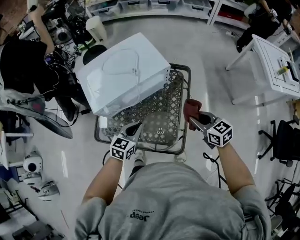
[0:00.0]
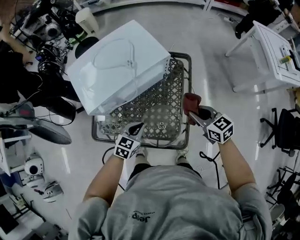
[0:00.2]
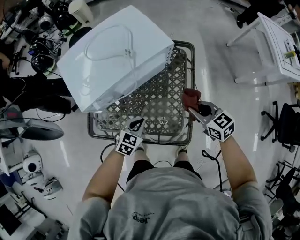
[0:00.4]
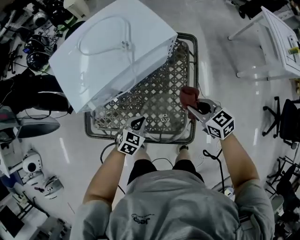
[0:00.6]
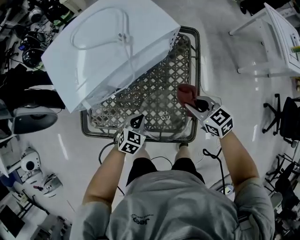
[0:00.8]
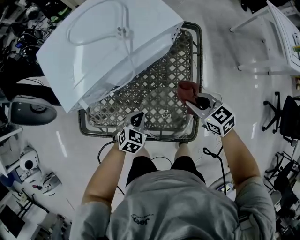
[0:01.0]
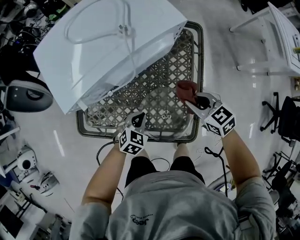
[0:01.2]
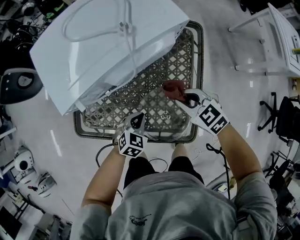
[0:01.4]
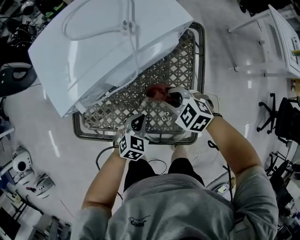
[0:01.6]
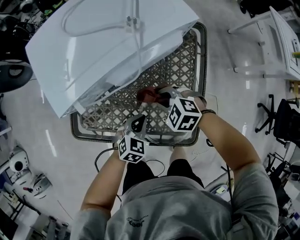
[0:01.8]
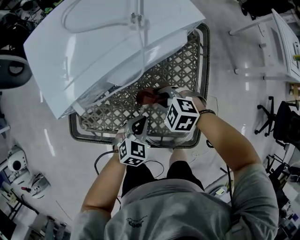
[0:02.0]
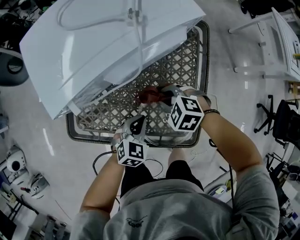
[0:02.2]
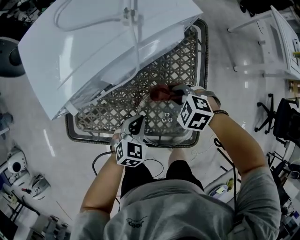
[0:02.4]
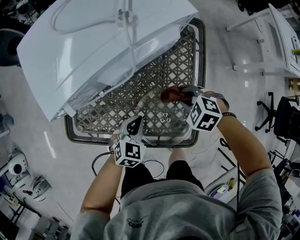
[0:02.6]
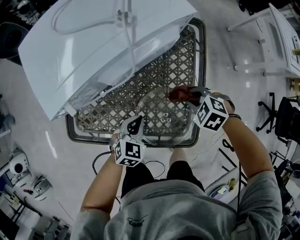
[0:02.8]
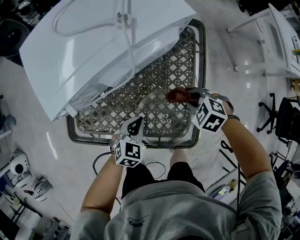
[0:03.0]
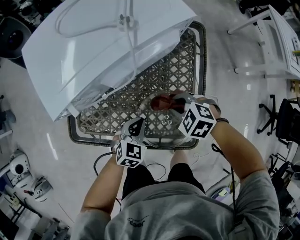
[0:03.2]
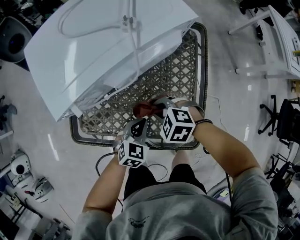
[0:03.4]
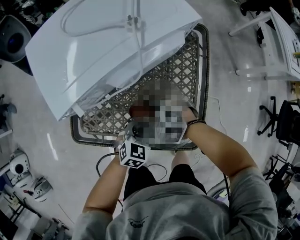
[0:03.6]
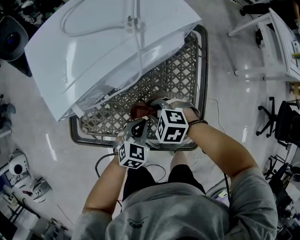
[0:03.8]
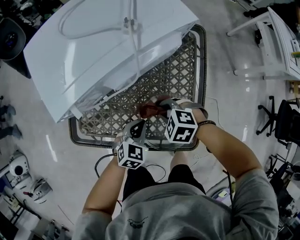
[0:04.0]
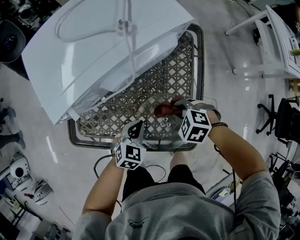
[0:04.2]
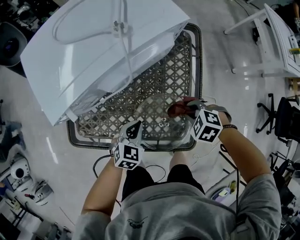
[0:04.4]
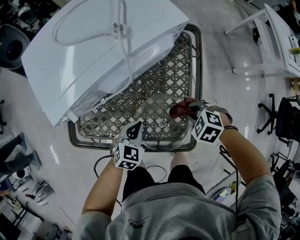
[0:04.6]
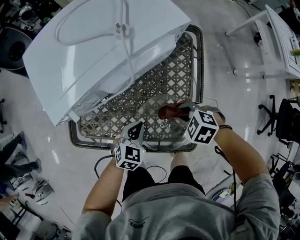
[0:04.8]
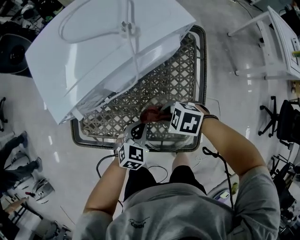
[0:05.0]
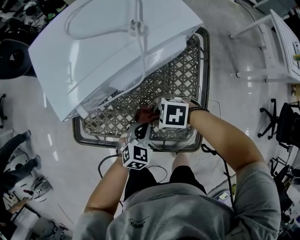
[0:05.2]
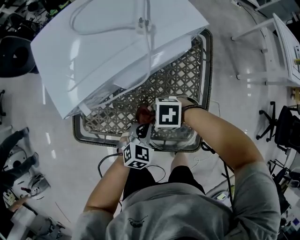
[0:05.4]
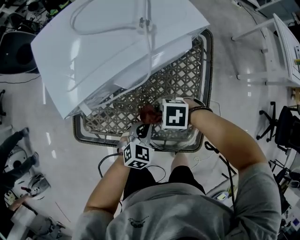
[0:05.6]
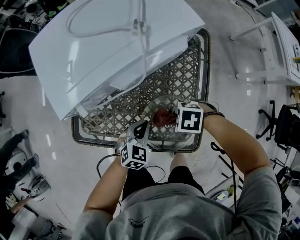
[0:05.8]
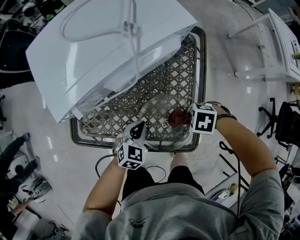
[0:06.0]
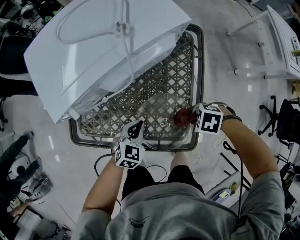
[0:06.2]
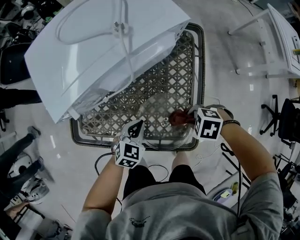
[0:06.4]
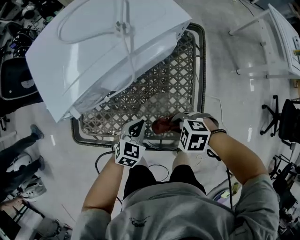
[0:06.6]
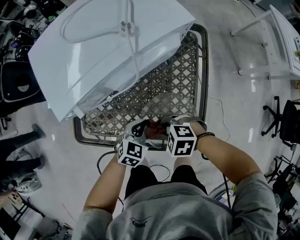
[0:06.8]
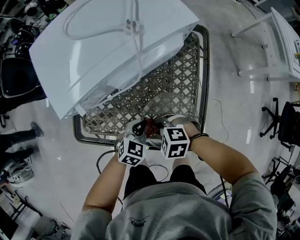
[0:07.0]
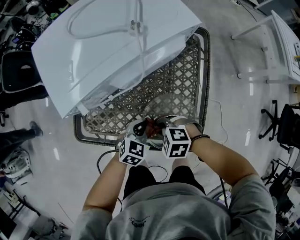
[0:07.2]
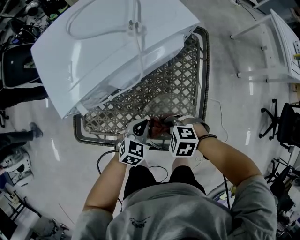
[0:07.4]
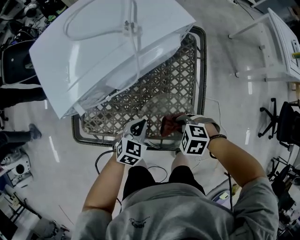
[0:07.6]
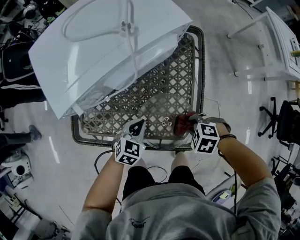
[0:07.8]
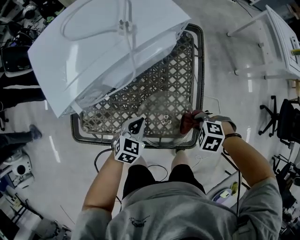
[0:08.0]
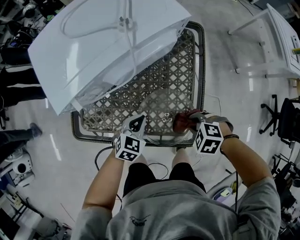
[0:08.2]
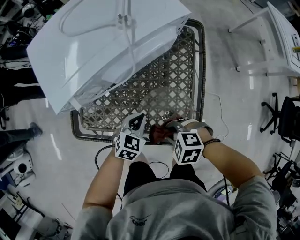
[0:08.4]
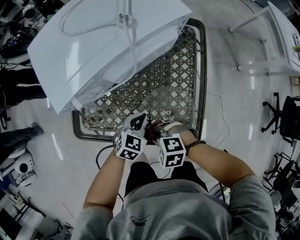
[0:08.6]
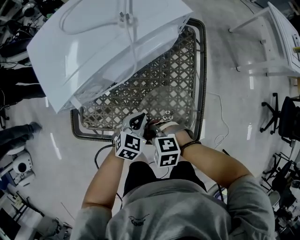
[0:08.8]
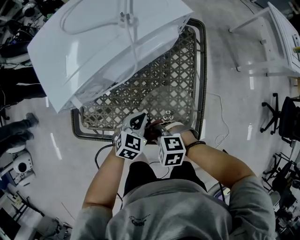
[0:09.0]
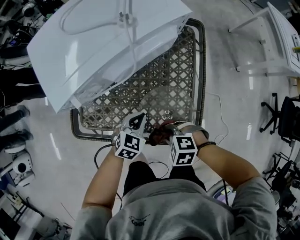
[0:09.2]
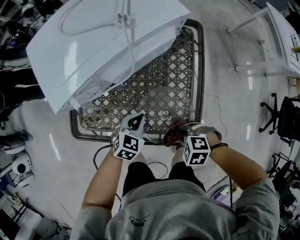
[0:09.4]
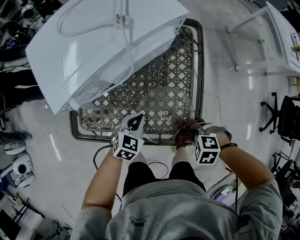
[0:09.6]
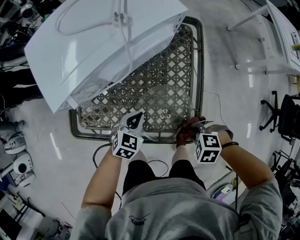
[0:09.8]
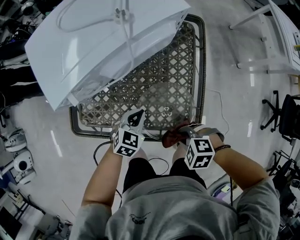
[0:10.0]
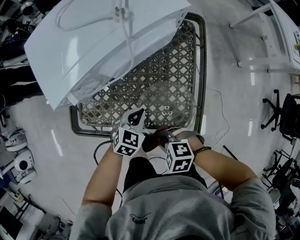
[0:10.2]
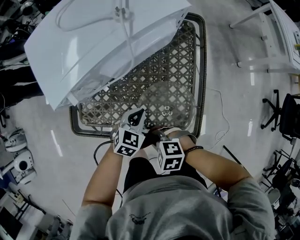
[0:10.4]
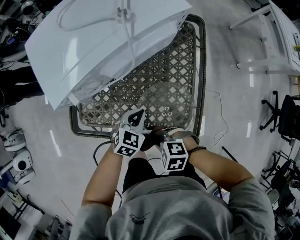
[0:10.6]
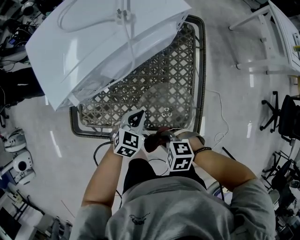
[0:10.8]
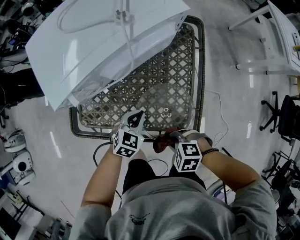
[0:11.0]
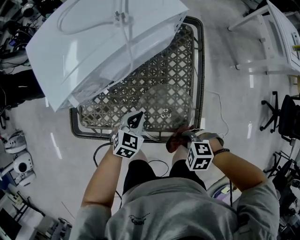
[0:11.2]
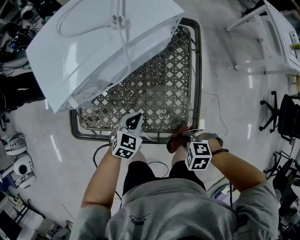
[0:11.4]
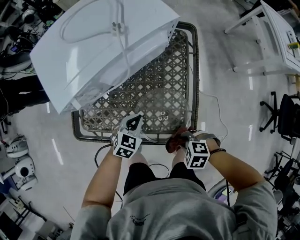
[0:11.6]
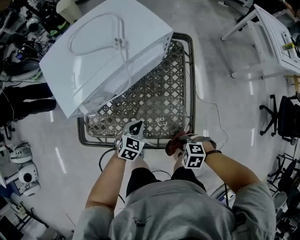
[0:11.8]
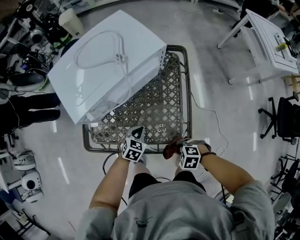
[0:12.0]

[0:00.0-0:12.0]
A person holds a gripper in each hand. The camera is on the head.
0:00.0 to 0:01.6: The left gripper shifts about 20 cm downward, and turns by some 30 degrees; the right gripper heads downward and to the left, covering approximately 25 cm, and swivels approximately 40 degrees.
0:01.6 to 0:03.0: The right gripper ends up approximately 10 cm from where it was.
0:04.4 to 0:06.0: The right gripper changes its angle by approximately 20 degrees.
0:07.6 to 0:09.0: The right gripper shifts by about 10 cm.
0:10.4 to 0:12.0: The right gripper moves some 15 cm.

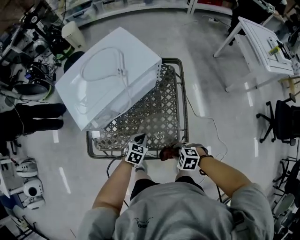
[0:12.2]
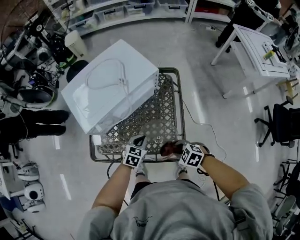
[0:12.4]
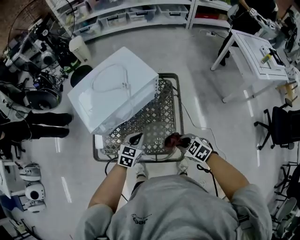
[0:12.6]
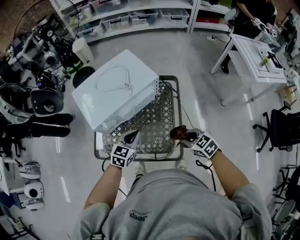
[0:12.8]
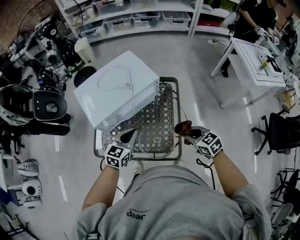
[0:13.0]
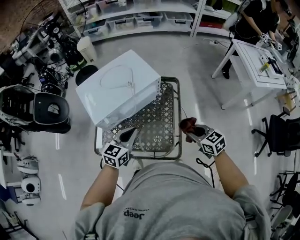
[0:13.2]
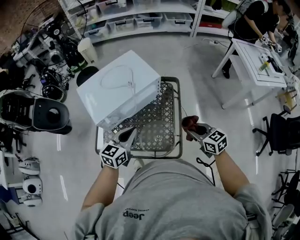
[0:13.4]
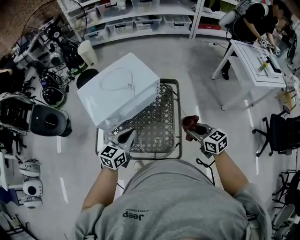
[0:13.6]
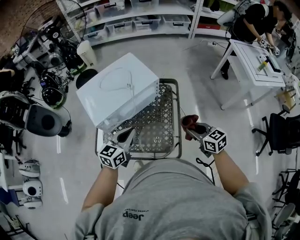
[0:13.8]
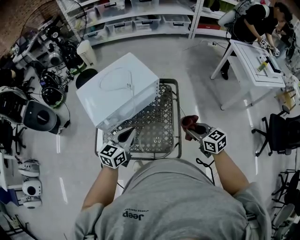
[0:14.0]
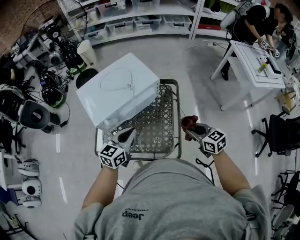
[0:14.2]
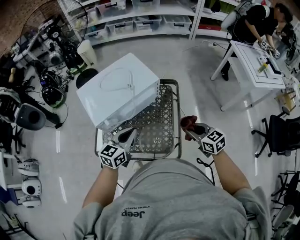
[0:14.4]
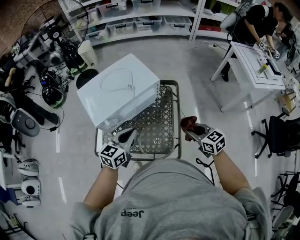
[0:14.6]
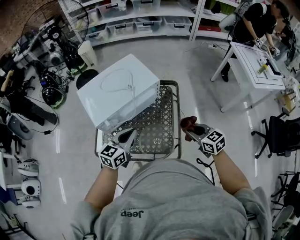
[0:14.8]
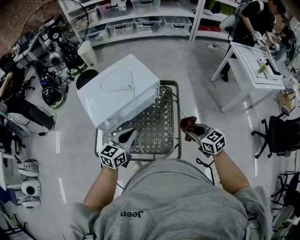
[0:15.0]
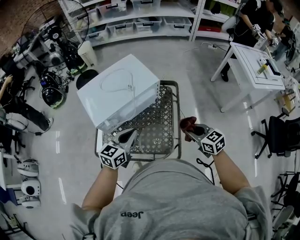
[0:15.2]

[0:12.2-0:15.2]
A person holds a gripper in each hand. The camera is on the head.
0:12.2 to 0:13.8: The grippers both shift upward by approximately 25 cm. The right gripper points its fingers roughly 40 degrees further upward; the left gripper angles its fingers upward, by roughly 30 degrees.
0:13.8 to 0:15.2: The grippers make only small movements.

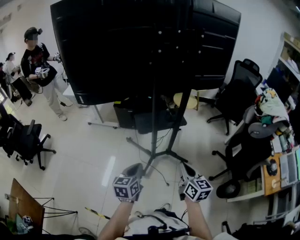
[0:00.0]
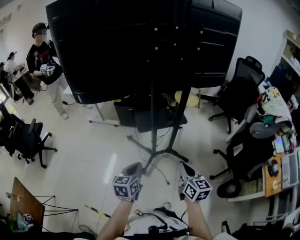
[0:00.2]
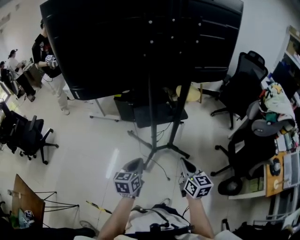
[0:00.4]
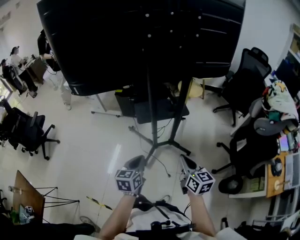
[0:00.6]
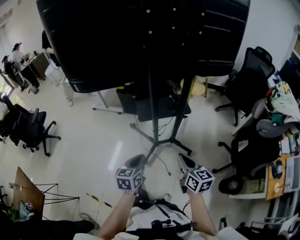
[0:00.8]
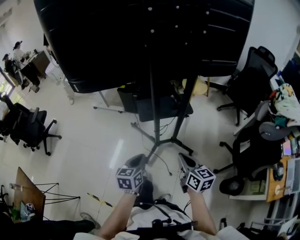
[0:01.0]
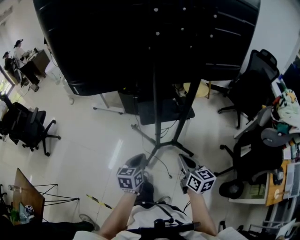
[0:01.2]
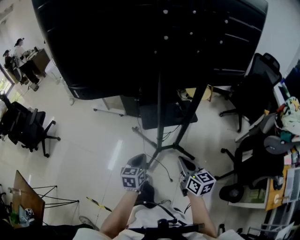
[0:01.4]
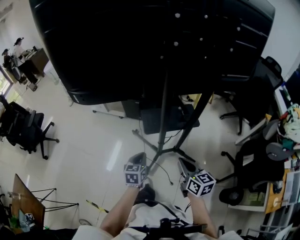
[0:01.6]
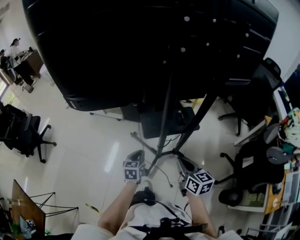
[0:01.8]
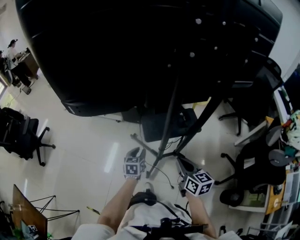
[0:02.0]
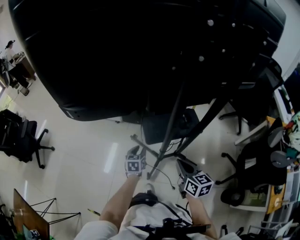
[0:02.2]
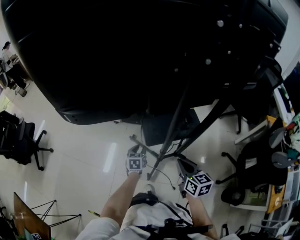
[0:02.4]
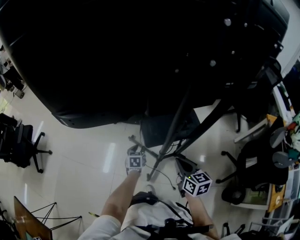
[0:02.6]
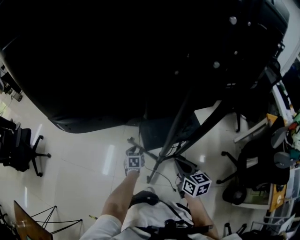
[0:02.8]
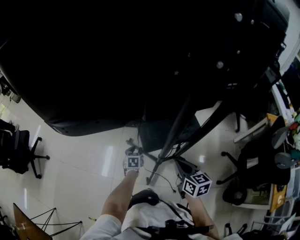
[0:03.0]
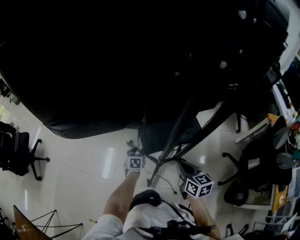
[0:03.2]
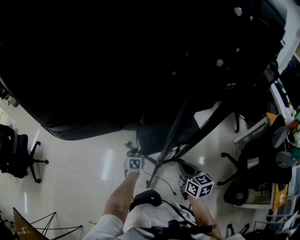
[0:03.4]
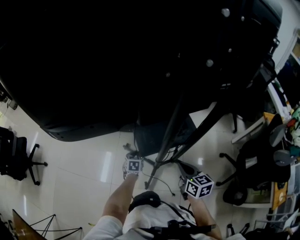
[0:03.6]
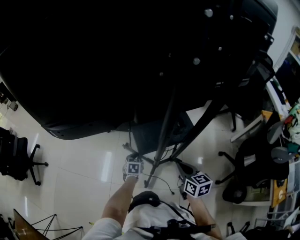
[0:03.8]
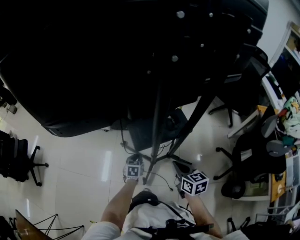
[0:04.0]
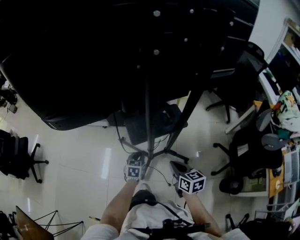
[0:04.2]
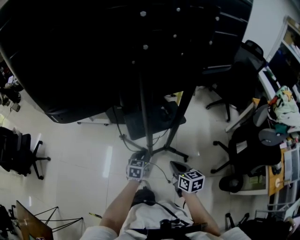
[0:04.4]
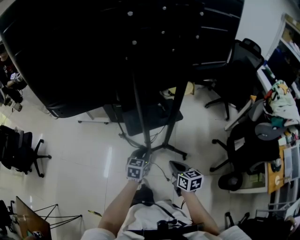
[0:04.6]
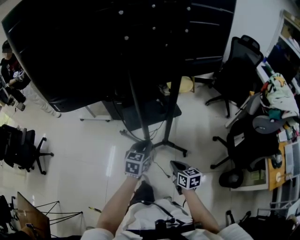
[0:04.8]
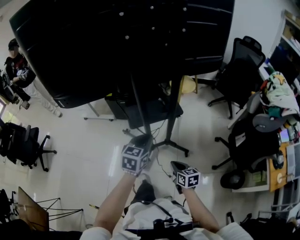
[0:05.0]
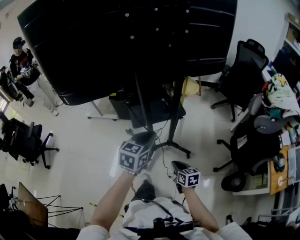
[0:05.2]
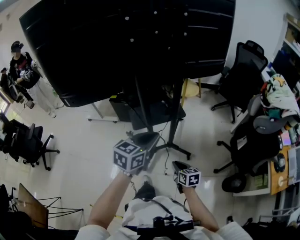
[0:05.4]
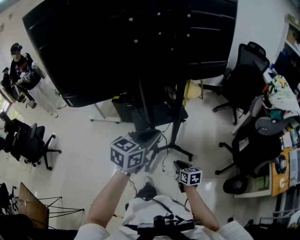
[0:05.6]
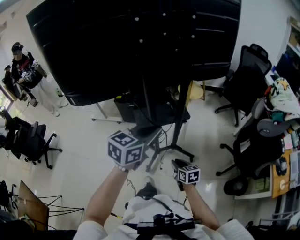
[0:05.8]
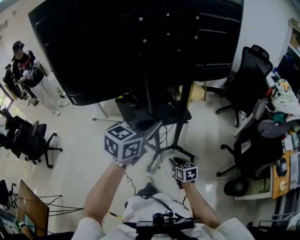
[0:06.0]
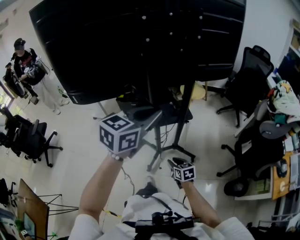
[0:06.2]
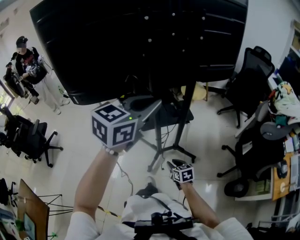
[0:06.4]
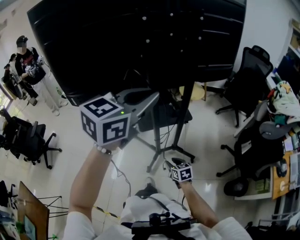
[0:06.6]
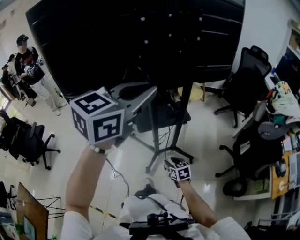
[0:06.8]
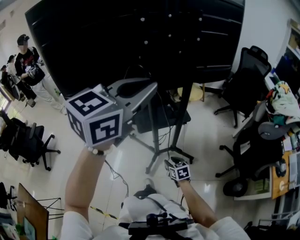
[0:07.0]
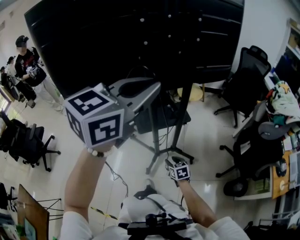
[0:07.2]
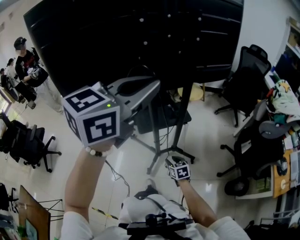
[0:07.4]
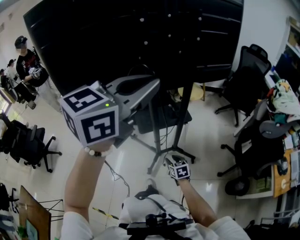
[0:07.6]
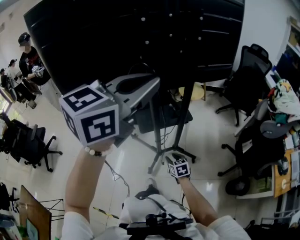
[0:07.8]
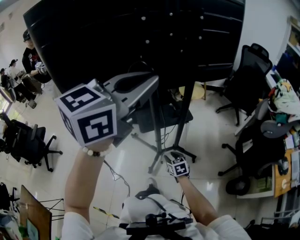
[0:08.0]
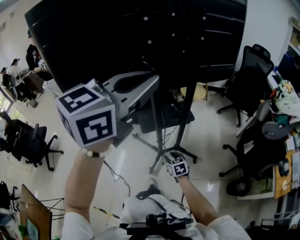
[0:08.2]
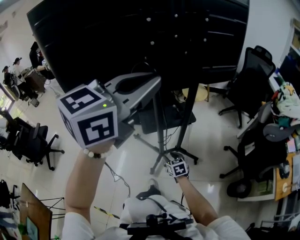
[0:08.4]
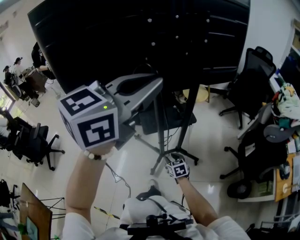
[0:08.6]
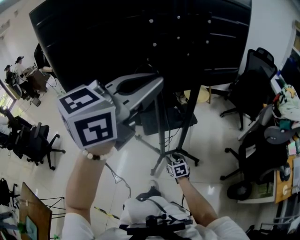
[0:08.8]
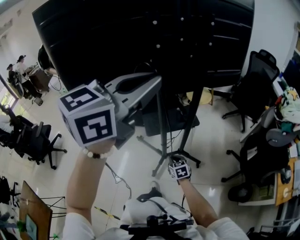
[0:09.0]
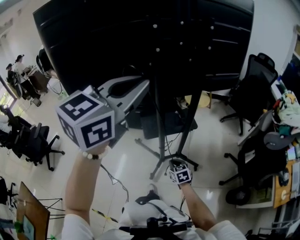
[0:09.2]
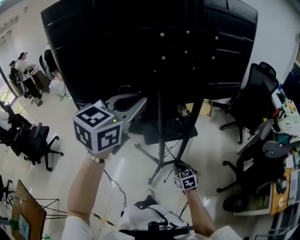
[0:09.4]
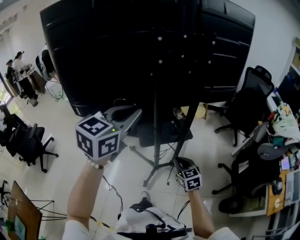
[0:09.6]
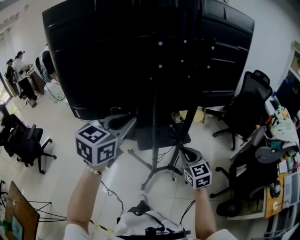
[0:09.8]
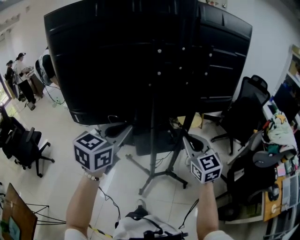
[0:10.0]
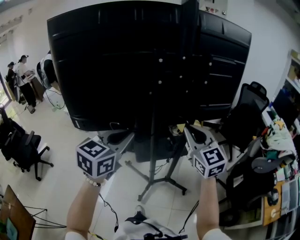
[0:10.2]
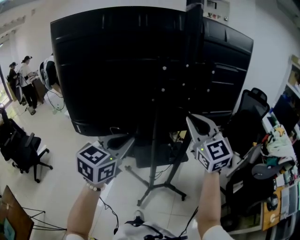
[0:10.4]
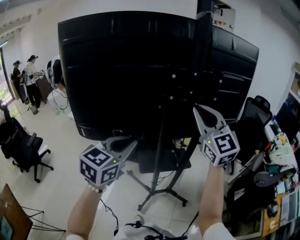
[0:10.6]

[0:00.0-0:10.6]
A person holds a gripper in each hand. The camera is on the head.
0:00.0 to 0:01.6: The left gripper is displaced forward and downward by roughly 25 cm. The right gripper goes about 15 cm forward.
0:01.6 to 0:03.0: The left gripper goes roughly 30 cm forward and downward, and opens up. Meanwhile the right gripper moves forward and downward, approximately 20 cm.
0:03.0 to 0:04.6: The right gripper travels backward and to the right by about 20 cm, while the left gripper moves backward, upward and to the right, roughly 35 cm, turns by about 20 degrees, and closes its fingers.
0:04.6 to 0:06.0: The right gripper is displaced downward by roughly 5 cm, and opens, while the left gripper travels upward by about 30 cm, and turns by roughly 20 degrees.
0:06.0 to 0:07.6: The right gripper changes place by some 5 cm. Meanwhile the left gripper shifts approximately 20 cm upward.
0:07.6 to 0:09.0: The right gripper closes.
0:09.0 to 0:10.6: The left gripper goes roughly 15 cm to the left and downward, and swivels approximately 20 degrees, while the right gripper goes roughly 60 cm upward, and angles its fingers upward, by about 50 degrees.
